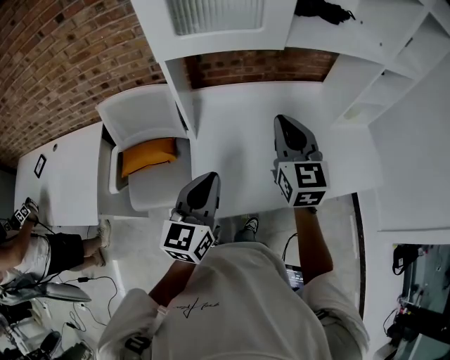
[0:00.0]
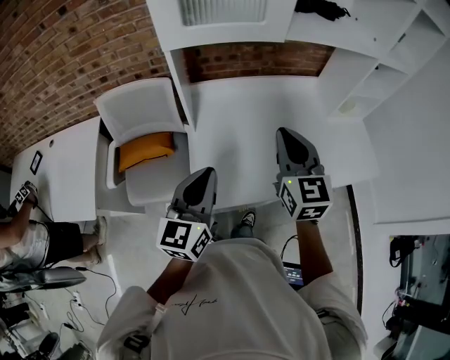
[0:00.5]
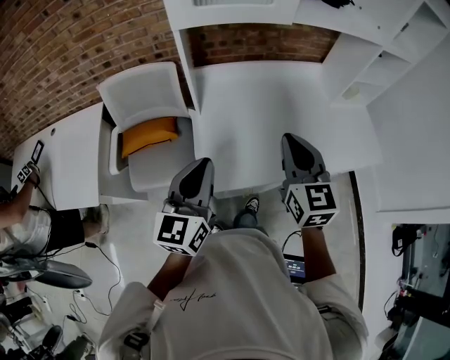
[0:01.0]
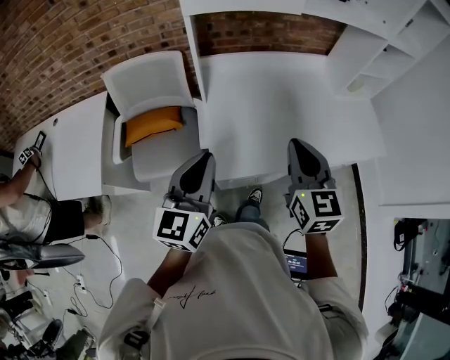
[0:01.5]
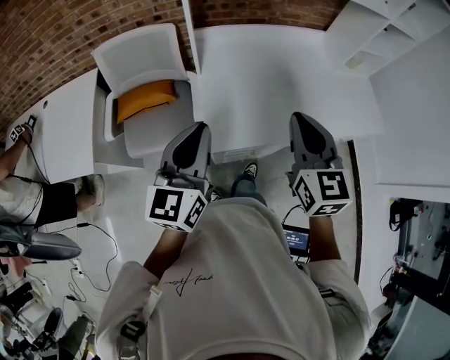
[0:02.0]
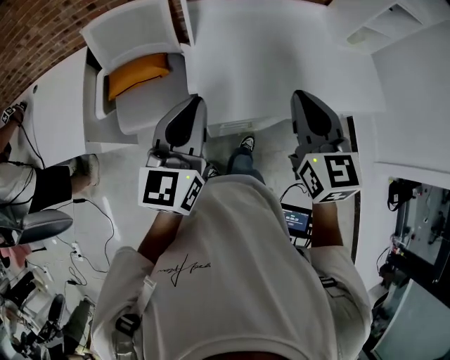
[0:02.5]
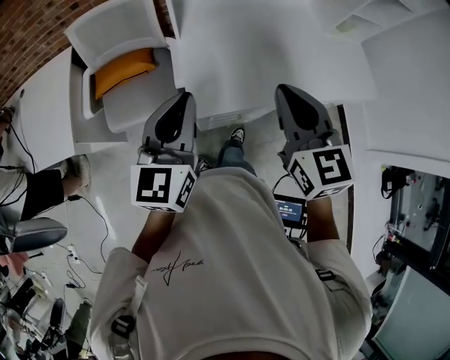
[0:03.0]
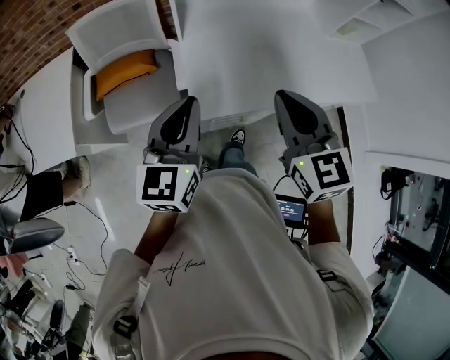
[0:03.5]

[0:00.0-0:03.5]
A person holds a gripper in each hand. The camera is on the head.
0:00.0 to 0:02.0: The right gripper moves backward, some 20 cm. The left gripper shifts roughly 10 cm backward and to the left.
0:02.0 to 0:03.5: There are only small adjustments of the grippers.

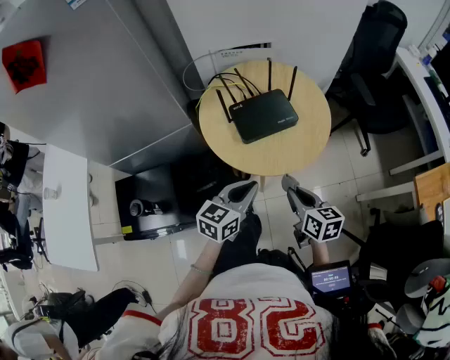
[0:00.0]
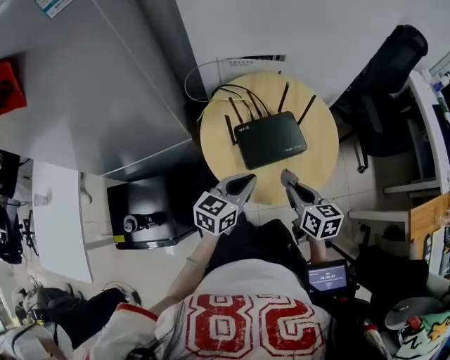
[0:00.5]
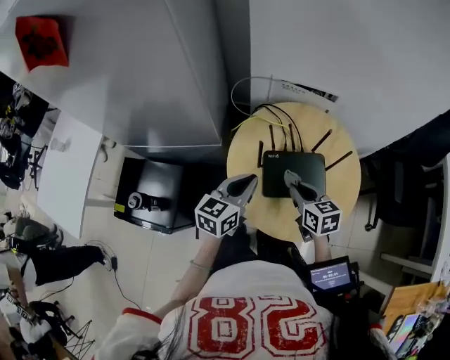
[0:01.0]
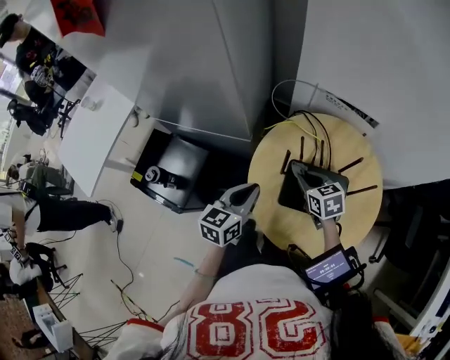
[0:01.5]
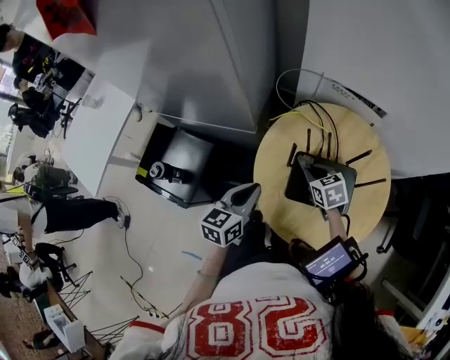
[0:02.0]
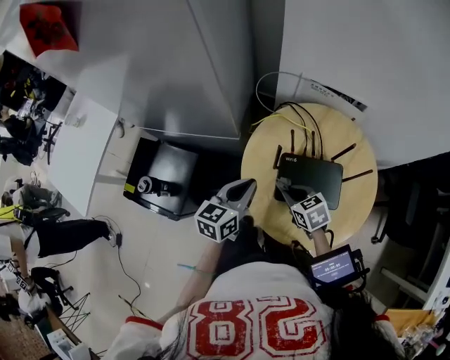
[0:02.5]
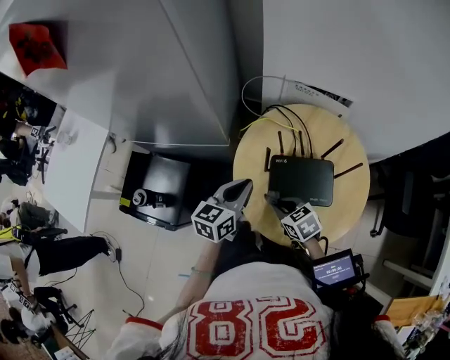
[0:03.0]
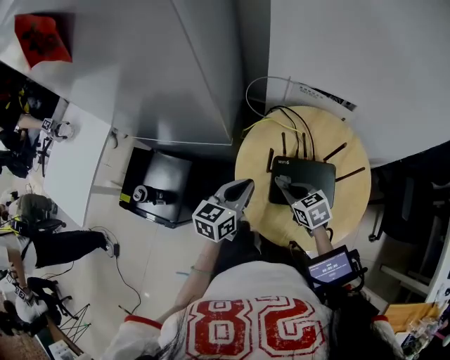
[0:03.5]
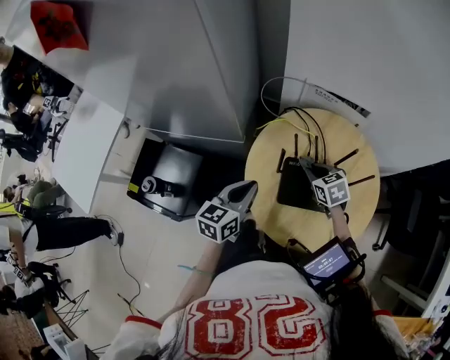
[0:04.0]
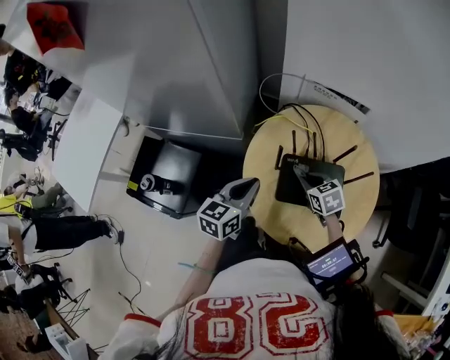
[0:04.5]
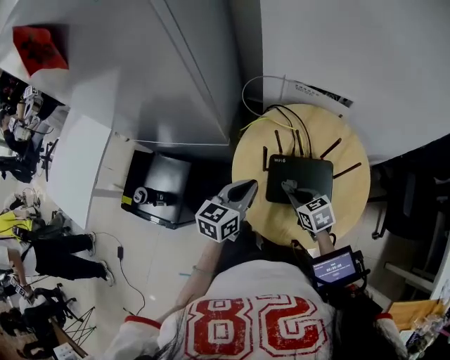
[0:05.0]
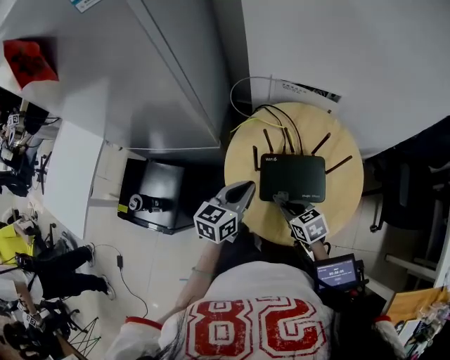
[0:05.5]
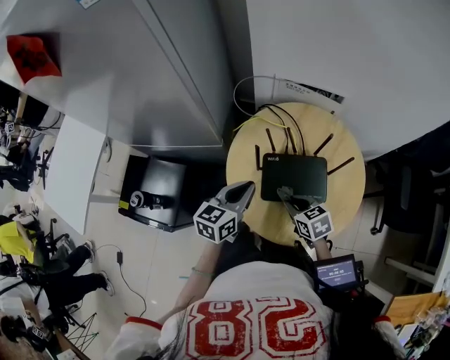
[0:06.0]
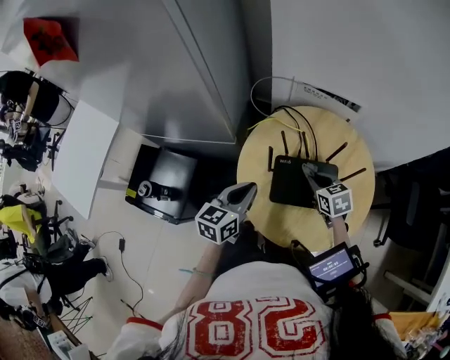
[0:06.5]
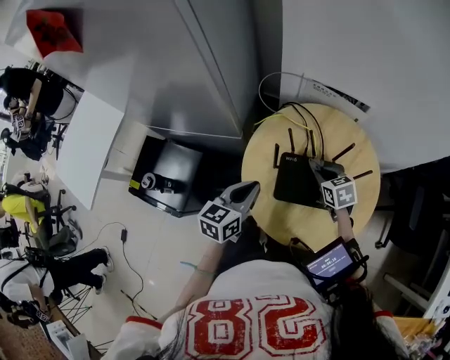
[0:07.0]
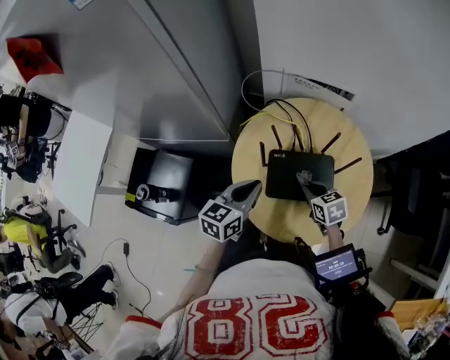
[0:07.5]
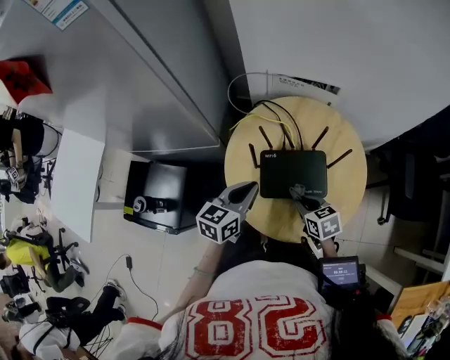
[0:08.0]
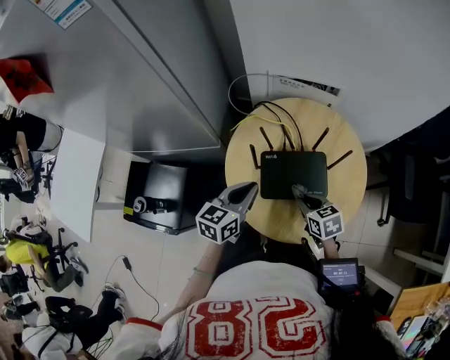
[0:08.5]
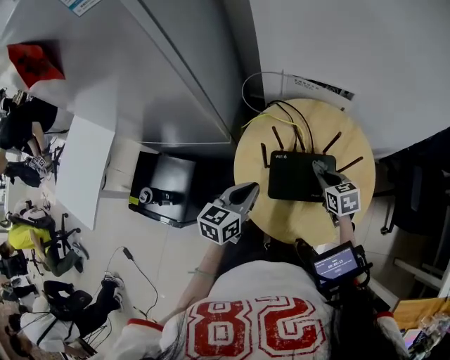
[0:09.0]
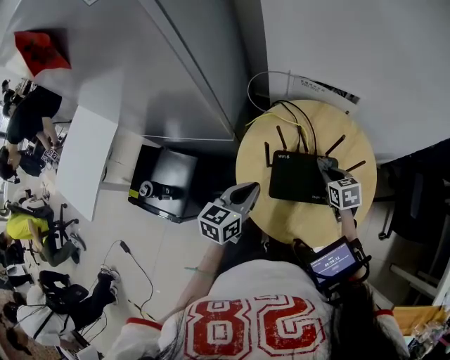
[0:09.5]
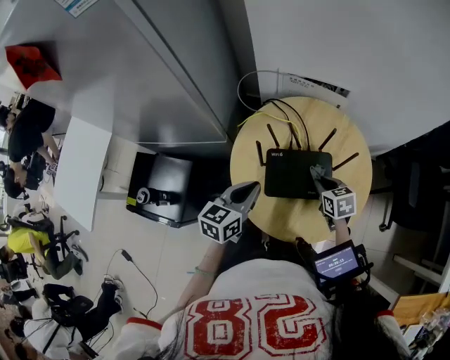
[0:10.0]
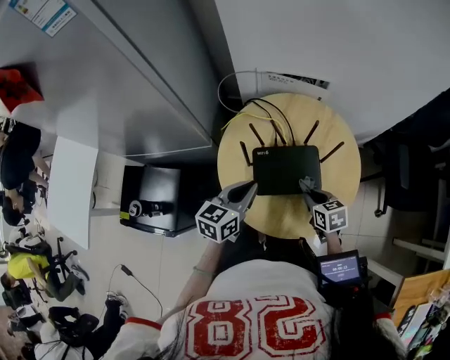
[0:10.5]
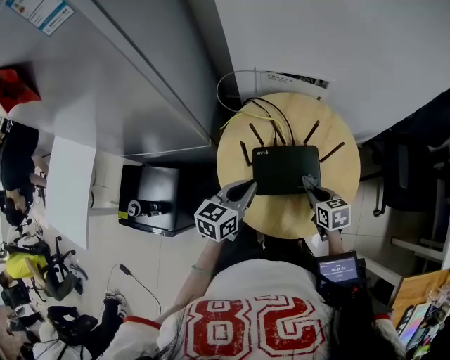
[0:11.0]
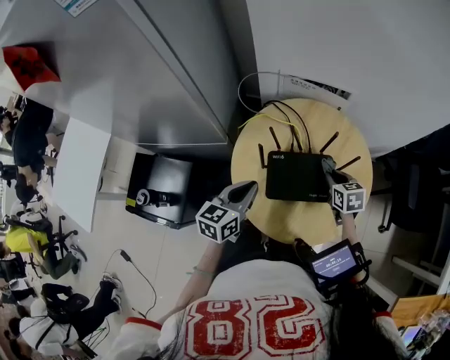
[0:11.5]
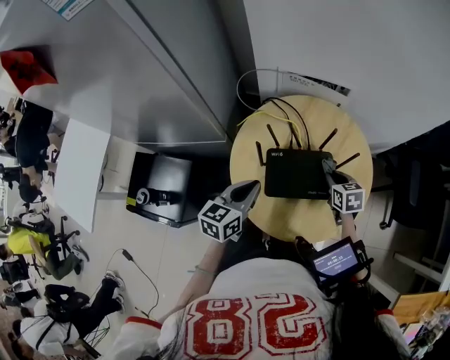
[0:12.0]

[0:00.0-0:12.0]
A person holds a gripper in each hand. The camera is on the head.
0:00.0 to 0:02.0: The right gripper shifts by approximately 35 cm, and swivels some 60 degrees; the left gripper moves about 20 cm, and rotates roughly 40 degrees.
0:02.0 to 0:04.0: The right gripper moves about 10 cm backward and comes back.
0:04.0 to 0:06.0: The left gripper travels to the right by about 5 cm. Meanwhile the right gripper goes some 15 cm backward.
0:06.0 to 0:08.0: The right gripper reaches some 10 cm forward, then returns.
0:08.0 to 0:10.0: The right gripper travels forward and to the right by some 10 cm.
0:10.0 to 0:12.0: The right gripper moves approximately 5 cm backward and comes back.

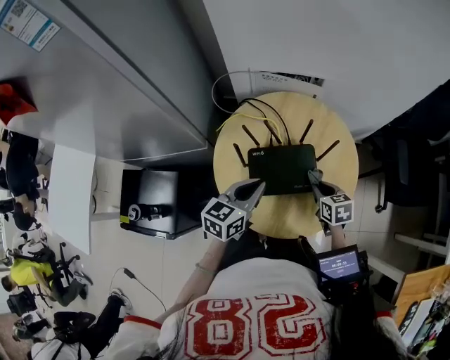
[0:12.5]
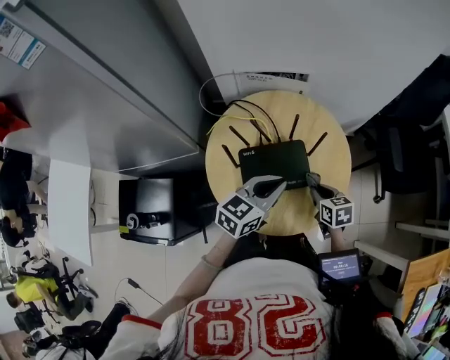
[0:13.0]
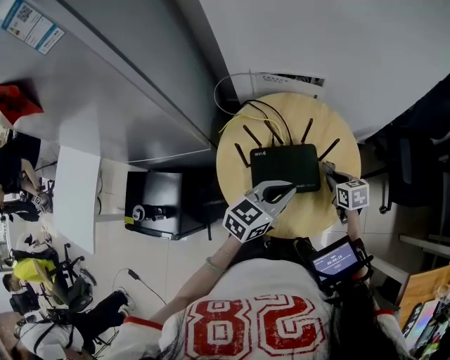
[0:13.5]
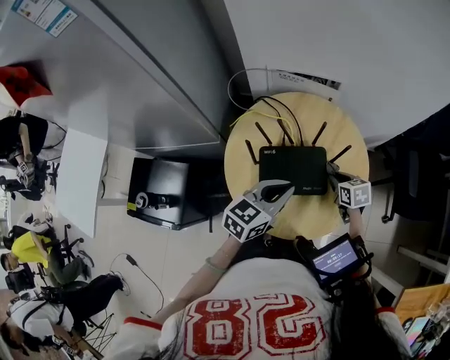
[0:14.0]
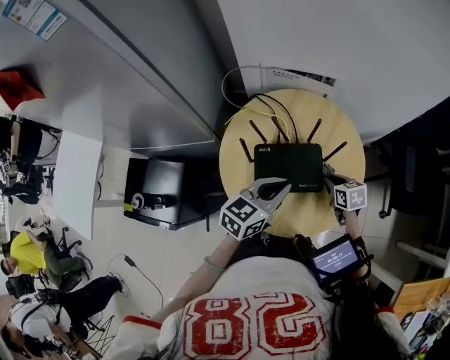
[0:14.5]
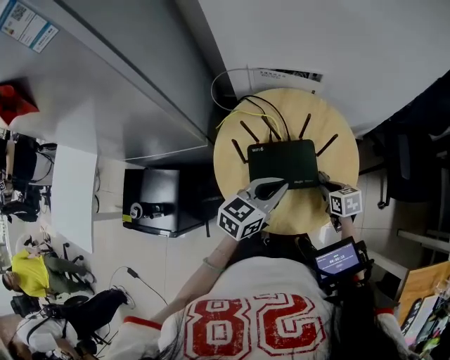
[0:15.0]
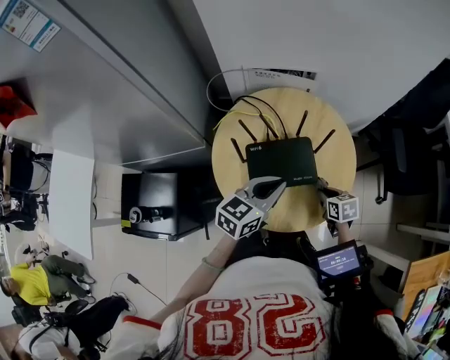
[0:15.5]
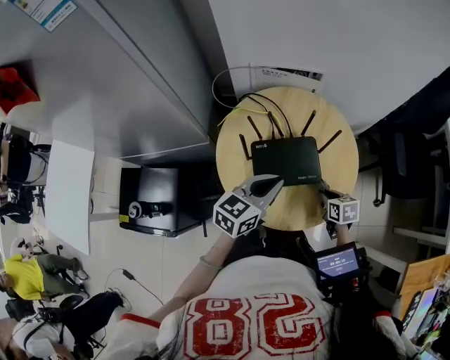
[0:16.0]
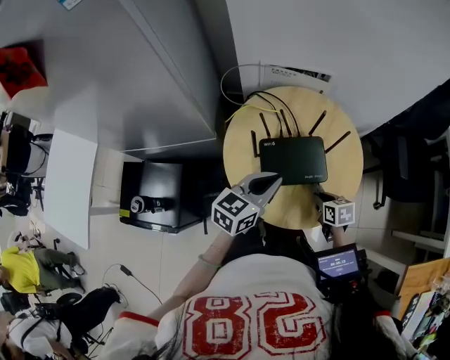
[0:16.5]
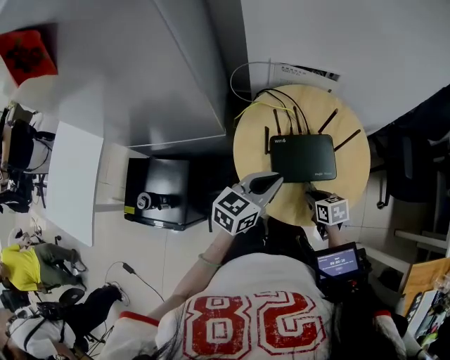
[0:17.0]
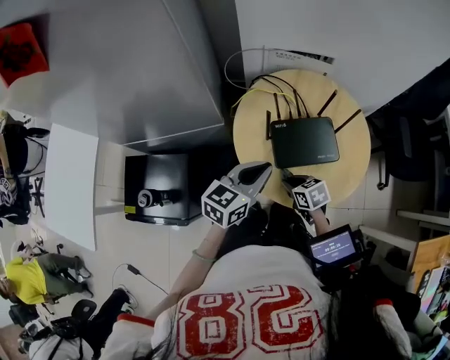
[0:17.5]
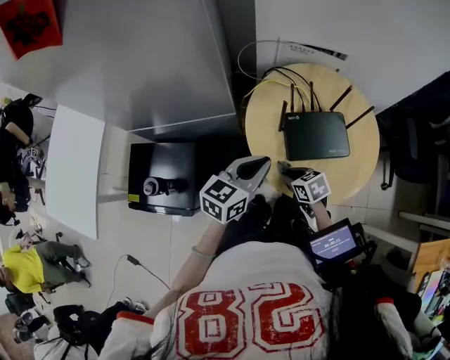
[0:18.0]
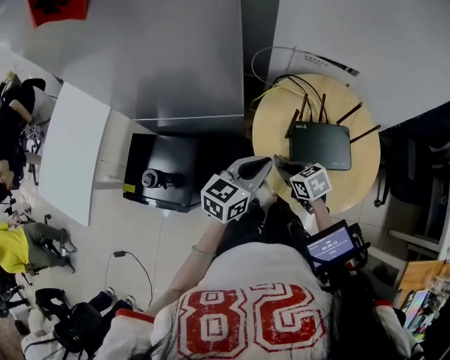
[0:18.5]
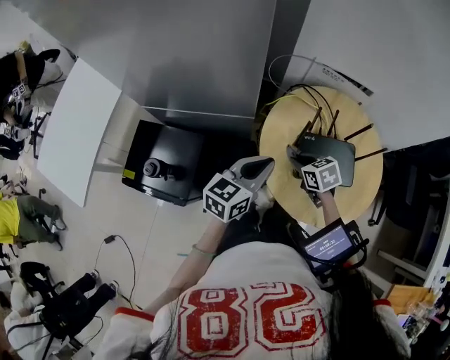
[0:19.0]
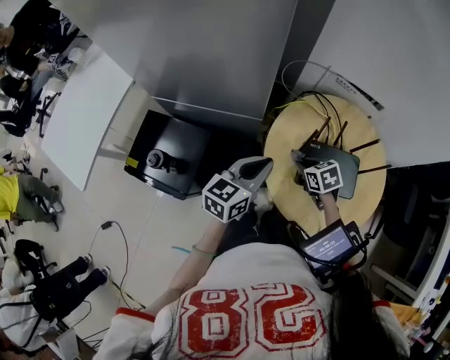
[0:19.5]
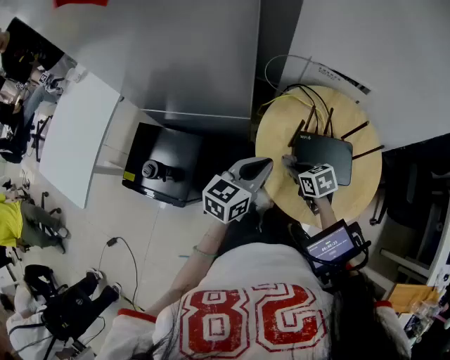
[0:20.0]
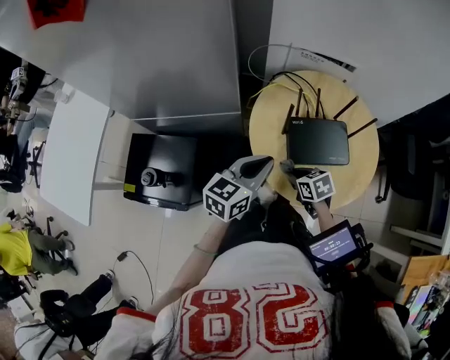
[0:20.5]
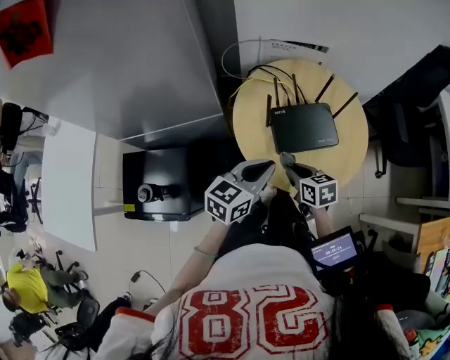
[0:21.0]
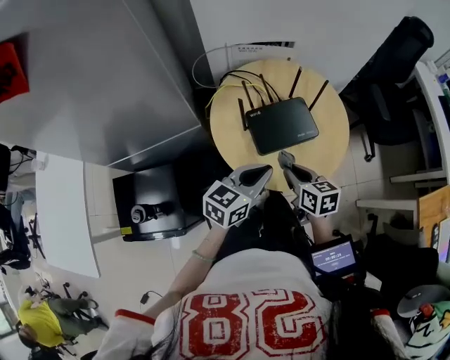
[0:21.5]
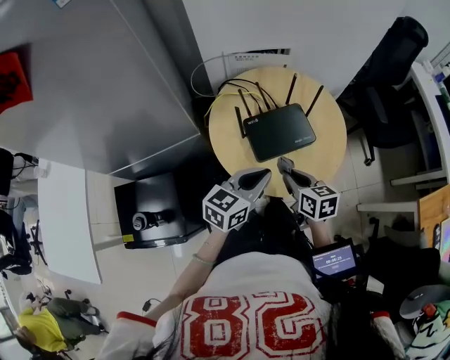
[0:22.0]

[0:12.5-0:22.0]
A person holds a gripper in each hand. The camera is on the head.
0:12.5 to 0:14.5: The left gripper heads to the right, covering about 5 cm. The right gripper moves some 5 cm.
0:14.5 to 0:16.5: The left gripper shifts approximately 5 cm to the left, while the right gripper travels backward by about 10 cm.
0:16.5 to 0:18.0: The right gripper travels to the left by roughly 20 cm, while the left gripper is displaced to the left by some 10 cm.
0:18.0 to 0:20.0: The right gripper moves forward, about 5 cm.
0:20.0 to 0:22.0: The right gripper changes place by some 15 cm, and turns by approximately 50 degrees. Meanwhile the left gripper moves approximately 10 cm, and turns by roughly 30 degrees.

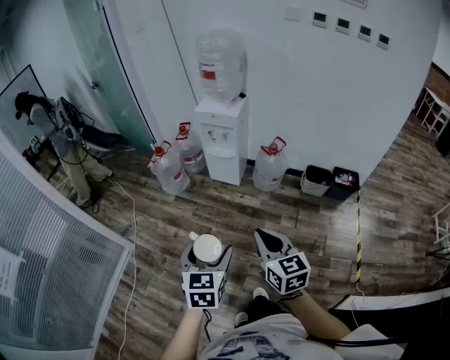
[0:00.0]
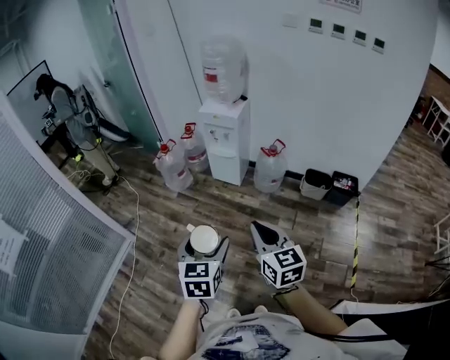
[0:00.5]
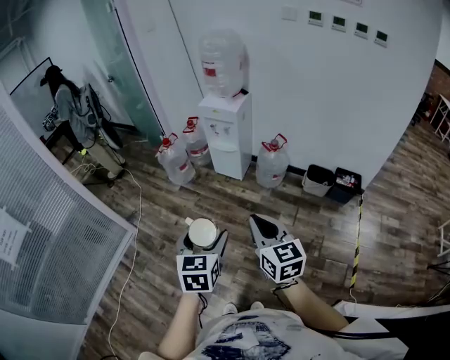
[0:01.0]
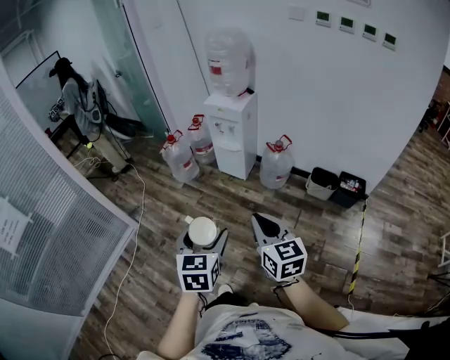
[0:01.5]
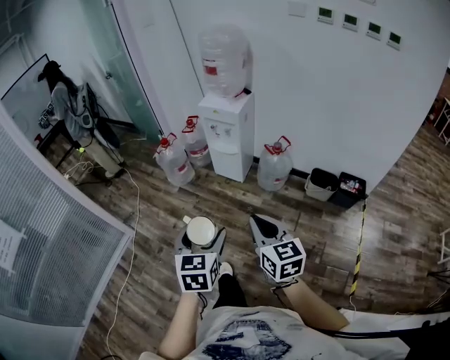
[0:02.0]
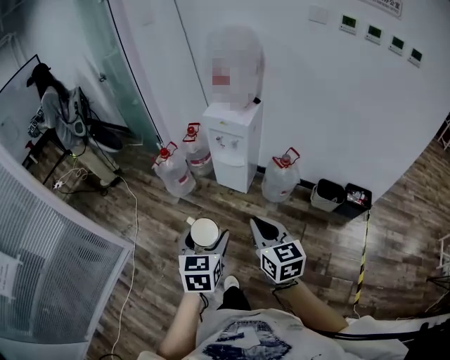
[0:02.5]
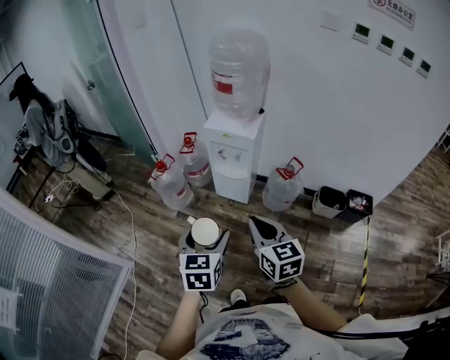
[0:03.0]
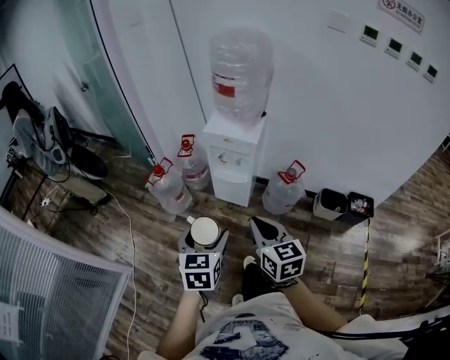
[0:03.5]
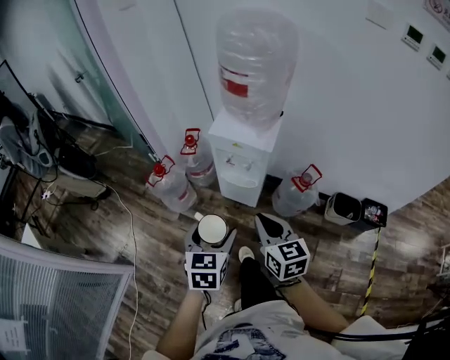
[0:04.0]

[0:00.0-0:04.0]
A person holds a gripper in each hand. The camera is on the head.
0:00.0 to 0:02.0: Both grippers travel together to the right, some 10 cm.
0:02.0 to 0:04.0: The two grippers travel together, forward, approximately 50 cm.
